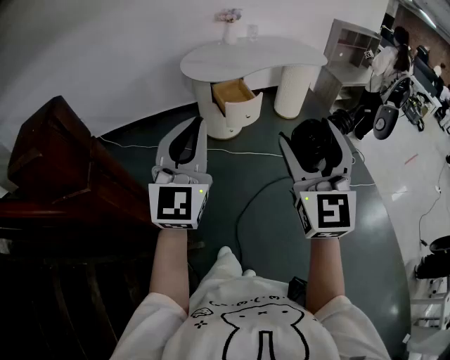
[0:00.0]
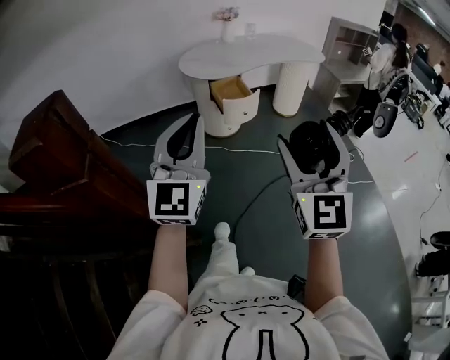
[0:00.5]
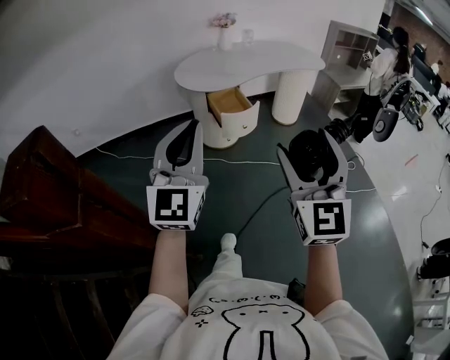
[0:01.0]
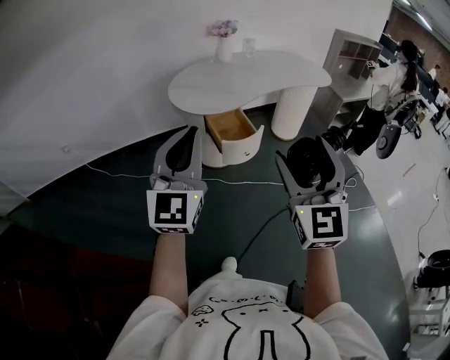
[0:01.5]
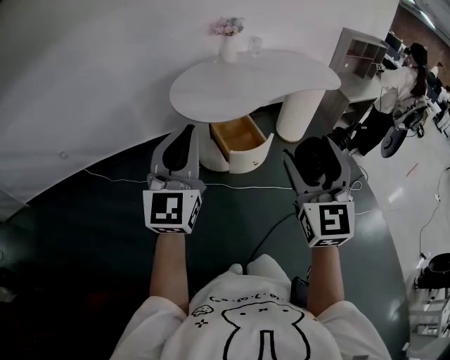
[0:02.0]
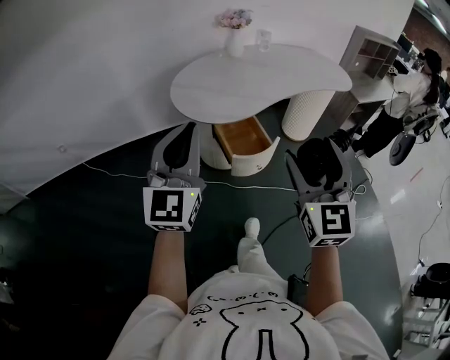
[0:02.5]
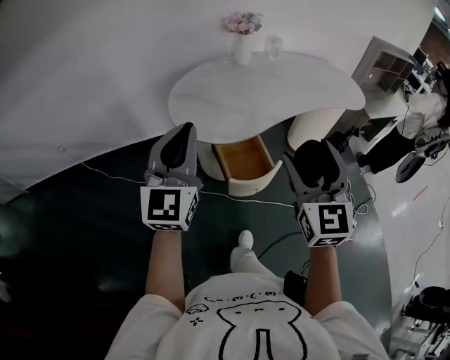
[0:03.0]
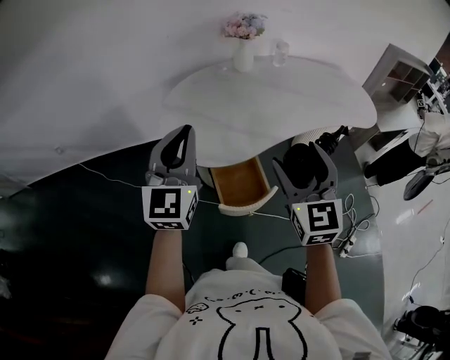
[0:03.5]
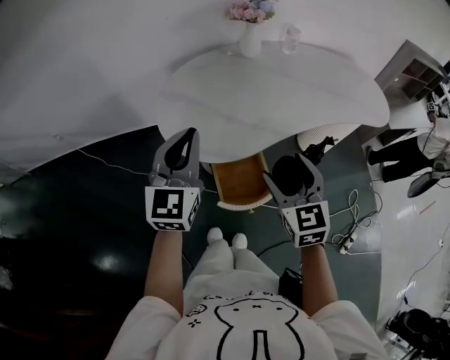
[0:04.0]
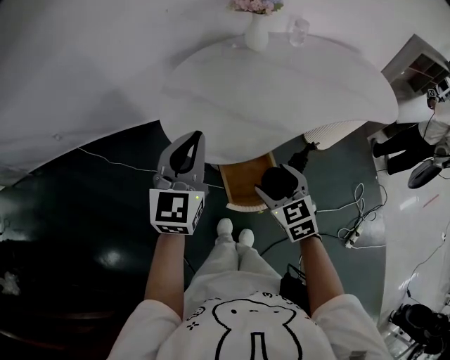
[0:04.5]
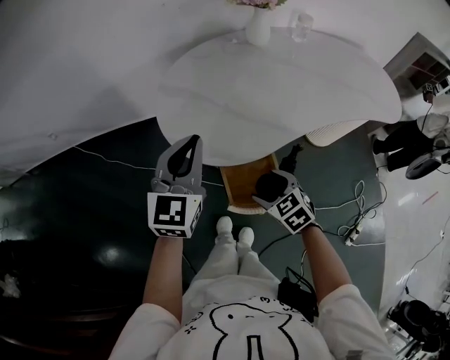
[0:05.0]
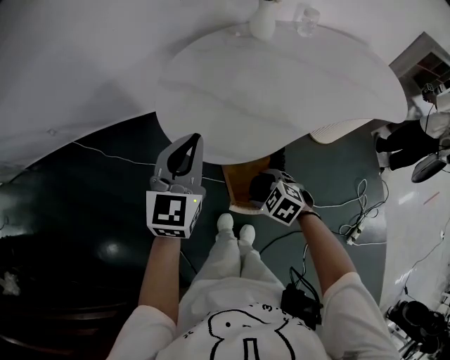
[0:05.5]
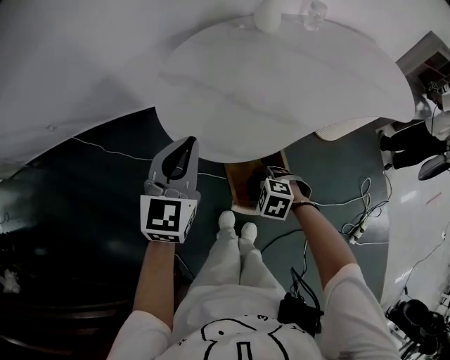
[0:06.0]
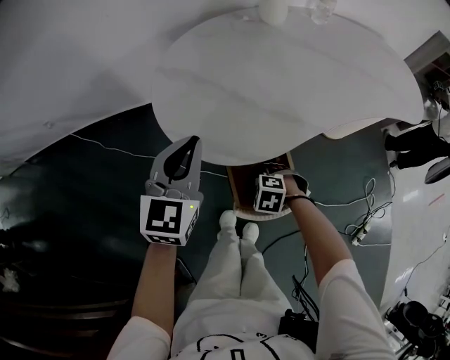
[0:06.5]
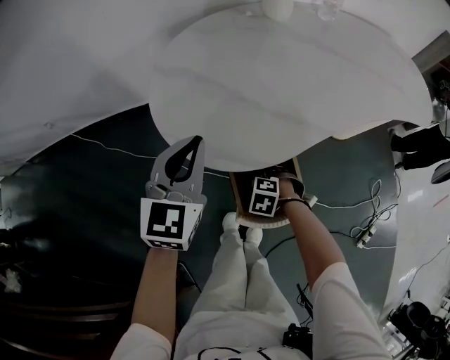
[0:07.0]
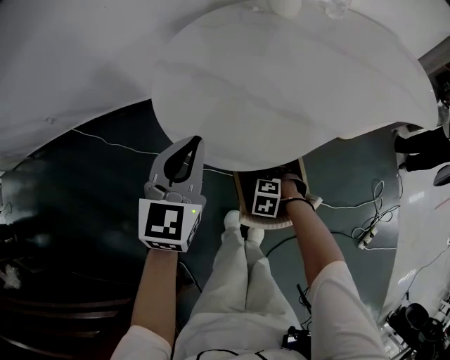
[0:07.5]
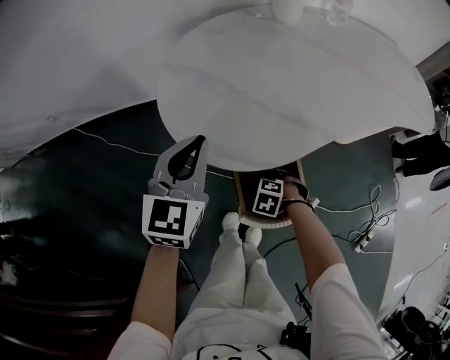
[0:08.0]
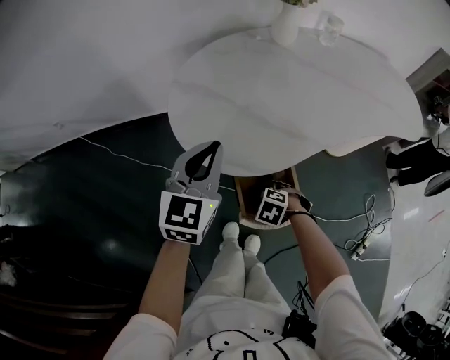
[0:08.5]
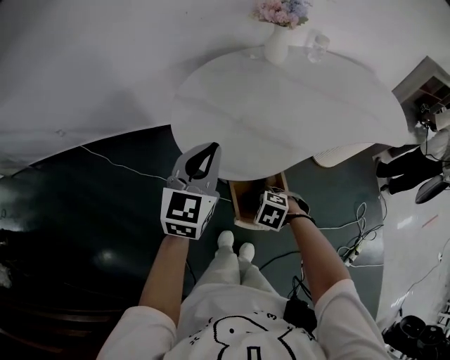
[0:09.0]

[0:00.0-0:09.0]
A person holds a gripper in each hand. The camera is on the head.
0:00.0 to 0:02.0: Both grippers move forward, roughly 35 cm.
0:02.0 to 0:04.5: The right gripper moves forward and downward, roughly 50 cm, and points its fingers about 40 degrees further downward. Meanwhile the left gripper moves forward, about 35 cm, and turns by about 20 degrees.
0:04.5 to 0:07.0: The left gripper travels downward by about 15 cm. The right gripper is displaced downward by roughly 30 cm, and tips its fingers downward by some 40 degrees.
0:07.0 to 0:09.0: The left gripper moves upward, approximately 10 cm. The right gripper heads upward, covering some 15 cm, and closes its fingers.

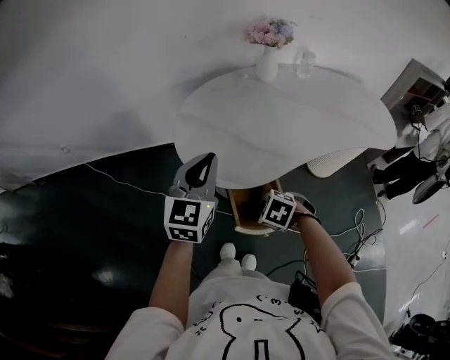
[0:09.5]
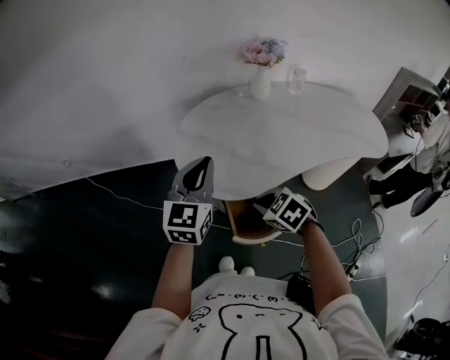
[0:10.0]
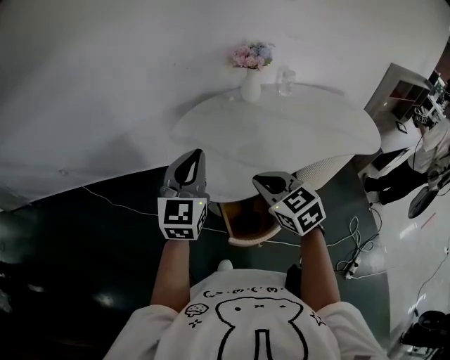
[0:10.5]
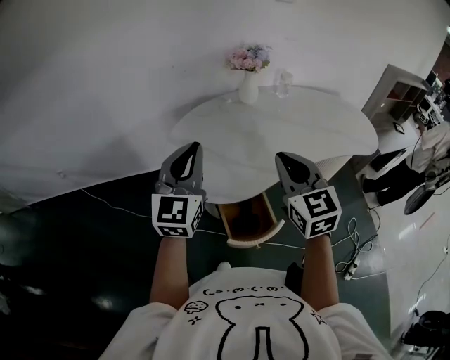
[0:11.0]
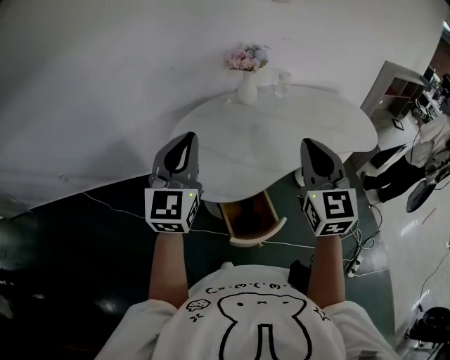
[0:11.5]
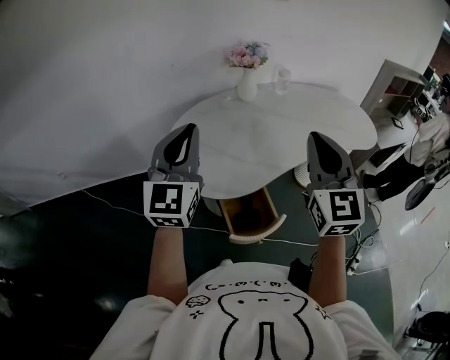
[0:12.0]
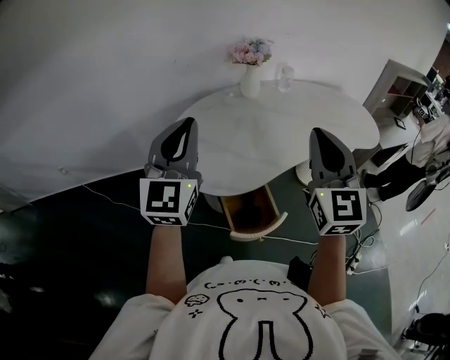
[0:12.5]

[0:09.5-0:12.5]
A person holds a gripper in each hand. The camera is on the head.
0:09.5 to 0:11.0: The right gripper moves upward, roughly 30 cm, and tips its fingers upward by approximately 60 degrees; the left gripper heads upward, covering approximately 10 cm.
0:11.0 to 0:12.5: The right gripper travels upward and to the right by about 10 cm, and rotates approximately 20 degrees. The left gripper goes roughly 5 cm upward.

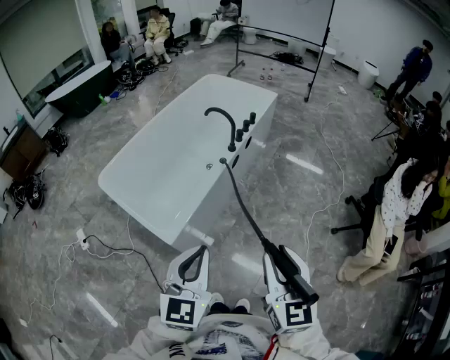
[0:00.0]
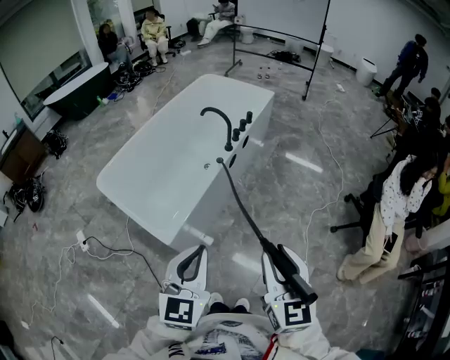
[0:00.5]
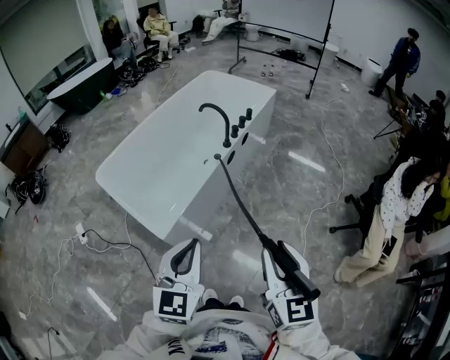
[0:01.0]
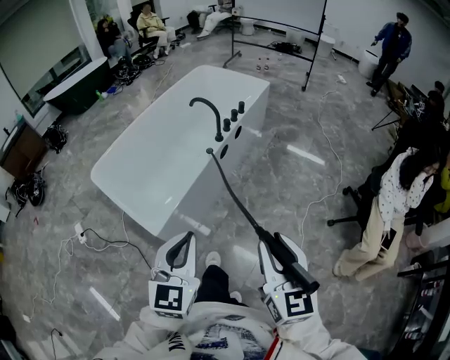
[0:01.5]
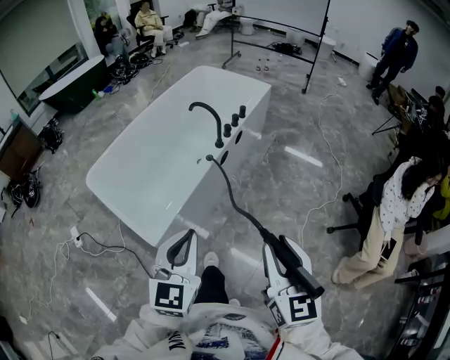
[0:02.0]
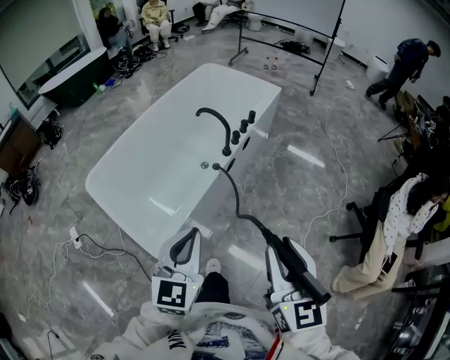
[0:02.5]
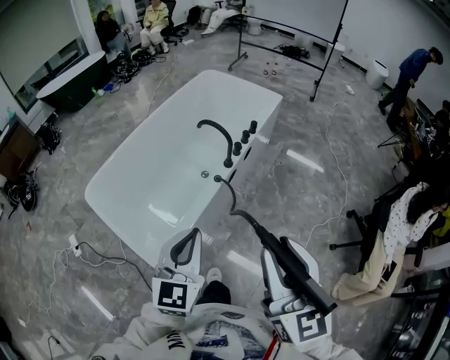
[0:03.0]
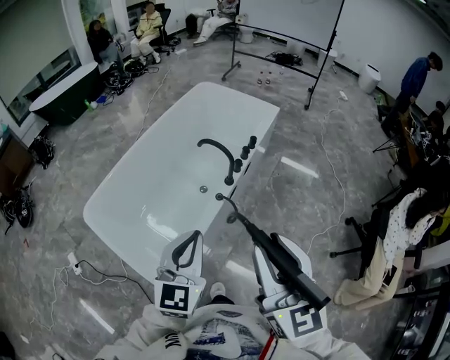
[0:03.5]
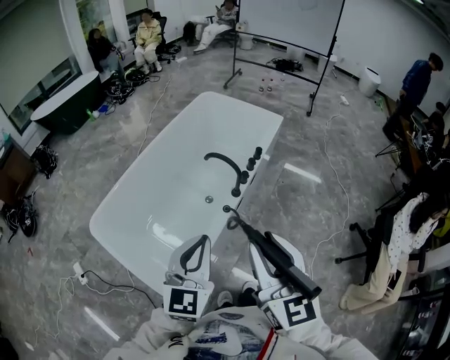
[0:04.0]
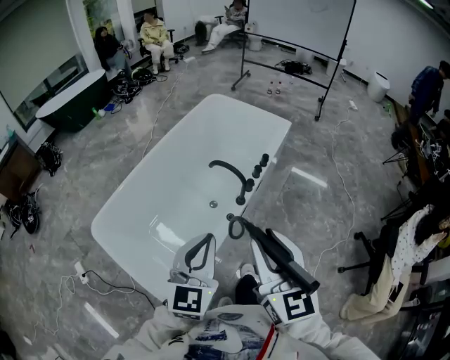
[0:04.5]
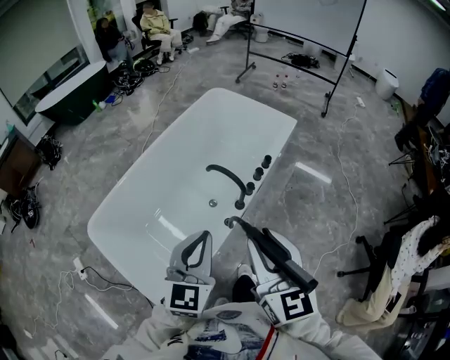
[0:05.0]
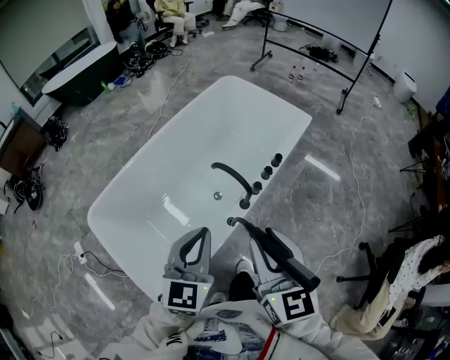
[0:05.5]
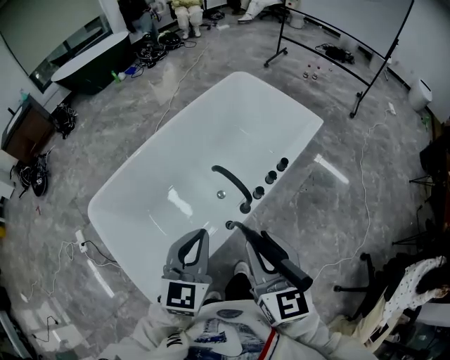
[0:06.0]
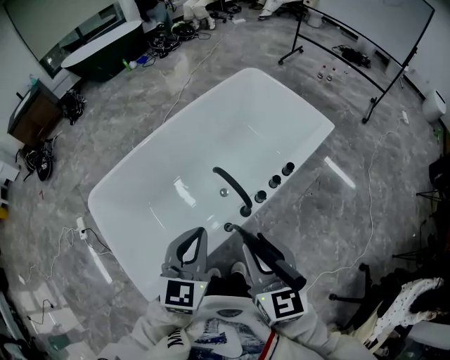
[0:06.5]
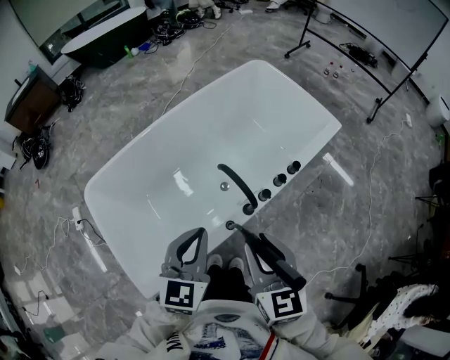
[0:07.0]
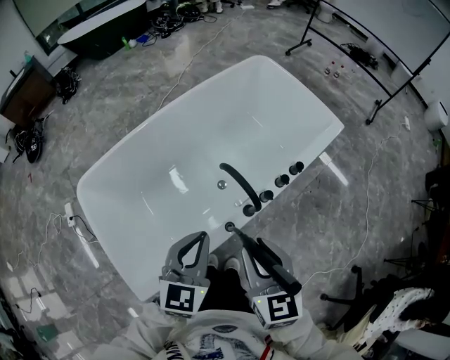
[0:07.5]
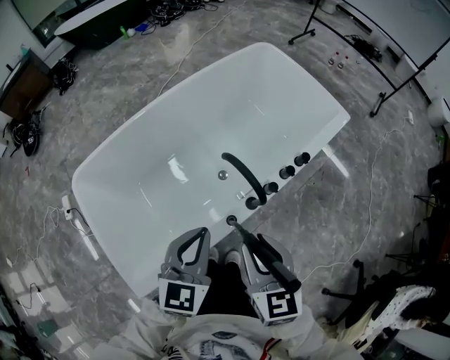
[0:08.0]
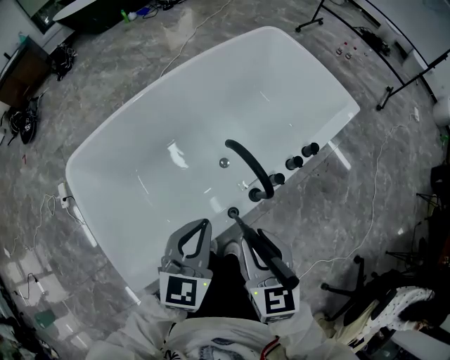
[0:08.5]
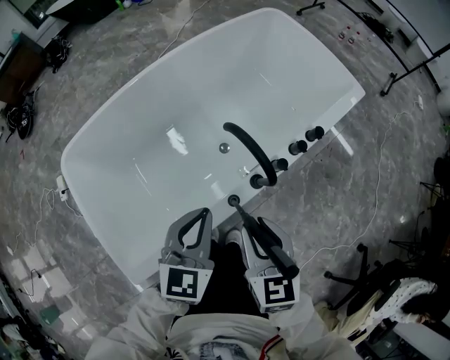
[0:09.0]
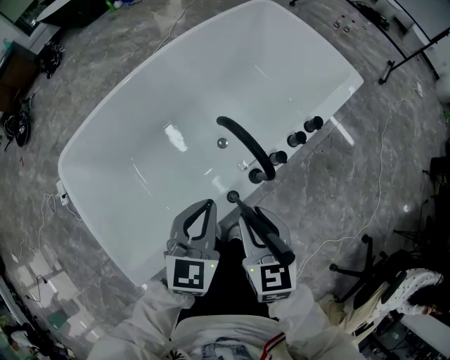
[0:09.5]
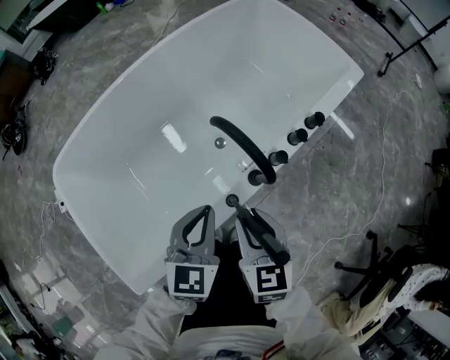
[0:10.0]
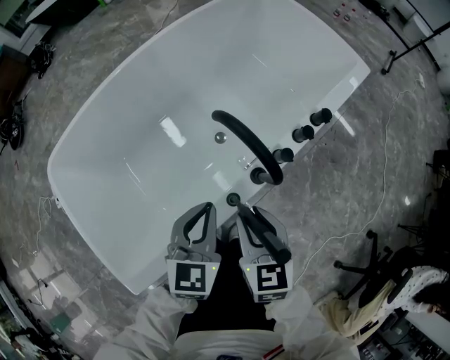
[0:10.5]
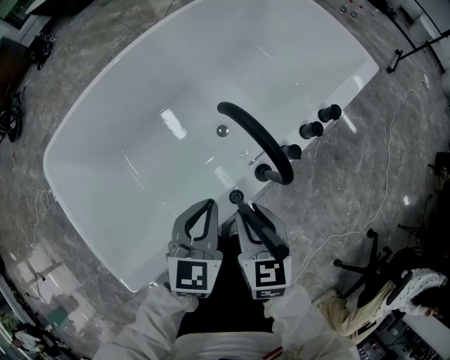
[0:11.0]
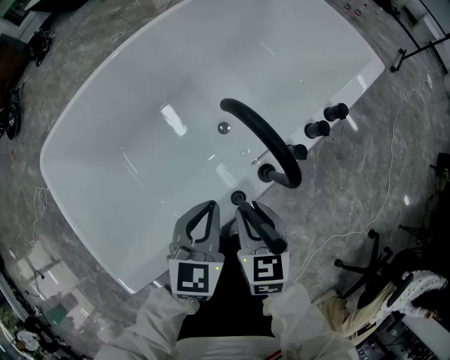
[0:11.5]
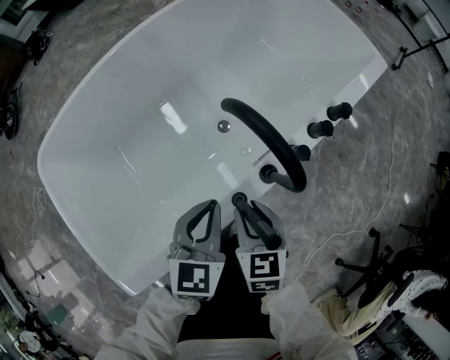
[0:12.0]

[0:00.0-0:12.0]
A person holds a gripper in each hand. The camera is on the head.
0:00.0 to 0:02.0: The right gripper moves to the right and forward, roughly 10 cm, while the left gripper travels forward by approximately 10 cm.
0:02.0 to 0:04.0: The right gripper travels forward and to the left by some 30 cm. Meanwhile the left gripper moves forward, about 25 cm.
0:04.0 to 0:06.0: Both grippers travel together forward and downward, roughly 20 cm.
0:06.0 to 0:08.0: Both grippers travel together downward, some 10 cm.
0:08.0 to 0:10.0: The grippers both shift downward by some 15 cm.
0:10.0 to 0:12.0: Both grippers travel together downward, approximately 10 cm.

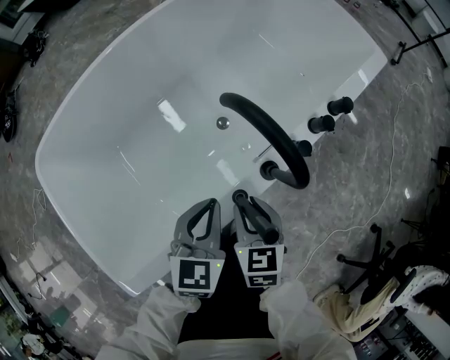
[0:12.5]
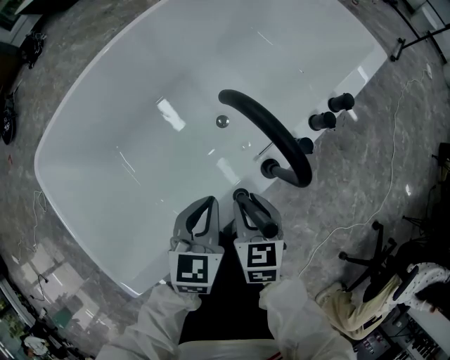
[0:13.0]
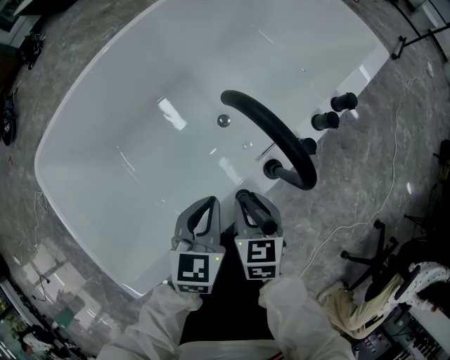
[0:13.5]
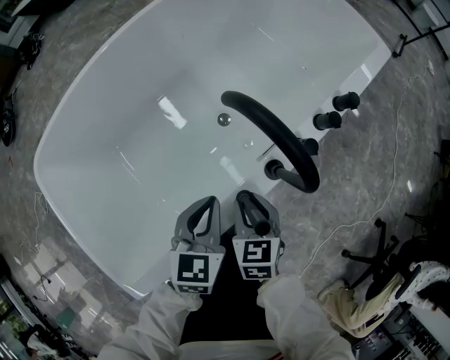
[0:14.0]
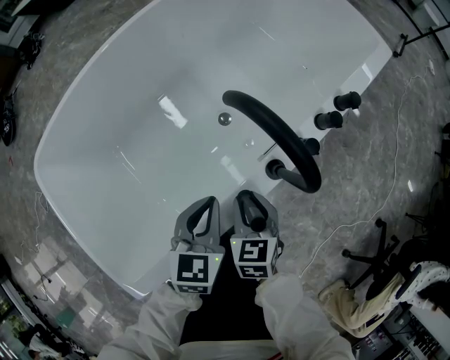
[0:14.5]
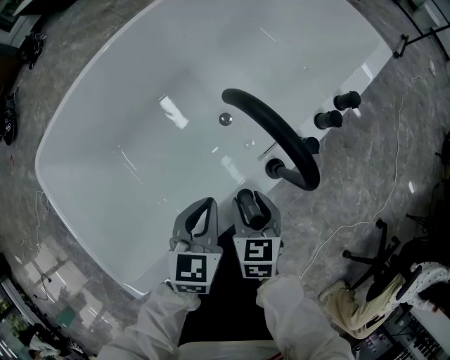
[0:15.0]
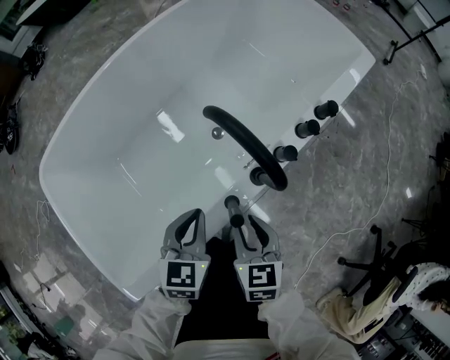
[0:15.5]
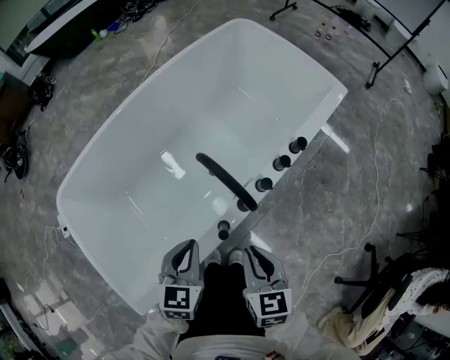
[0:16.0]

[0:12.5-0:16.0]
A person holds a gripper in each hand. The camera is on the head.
0:12.5 to 0:14.5: The grippers stay close to where they were, moving slightly.
0:14.5 to 0:16.0: The left gripper shifts approximately 10 cm upward; the right gripper travels upward by approximately 20 cm.
